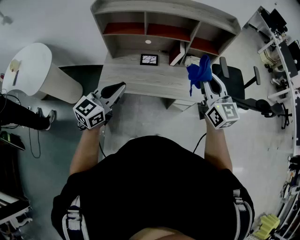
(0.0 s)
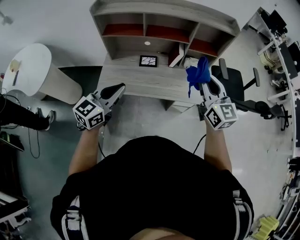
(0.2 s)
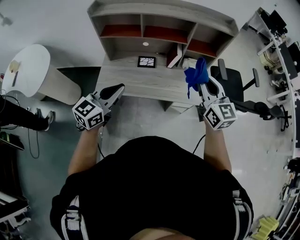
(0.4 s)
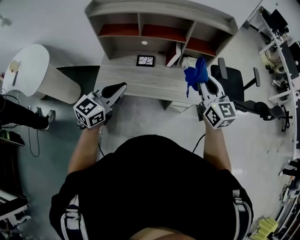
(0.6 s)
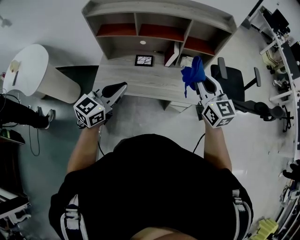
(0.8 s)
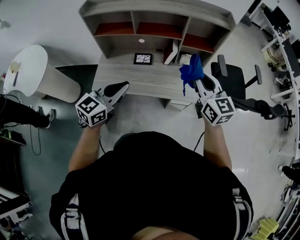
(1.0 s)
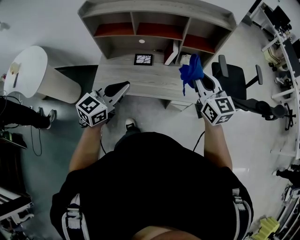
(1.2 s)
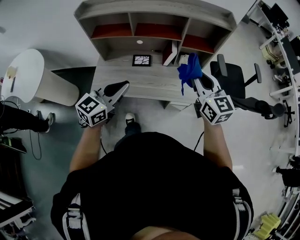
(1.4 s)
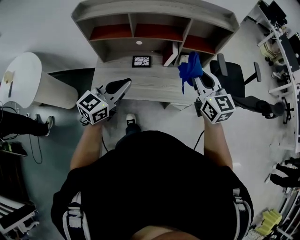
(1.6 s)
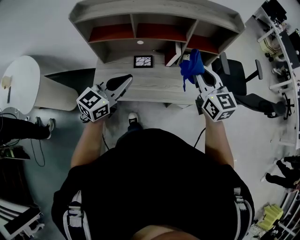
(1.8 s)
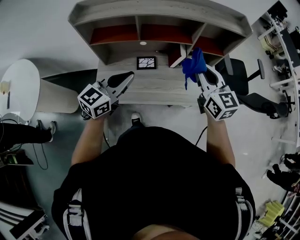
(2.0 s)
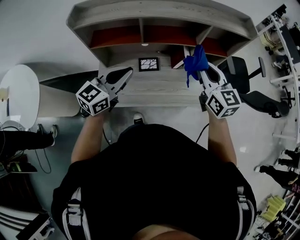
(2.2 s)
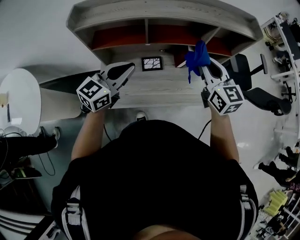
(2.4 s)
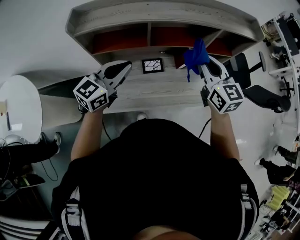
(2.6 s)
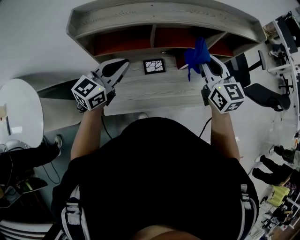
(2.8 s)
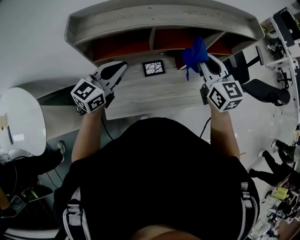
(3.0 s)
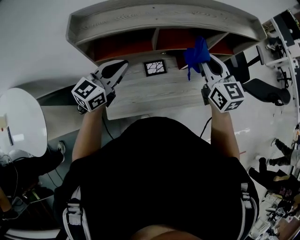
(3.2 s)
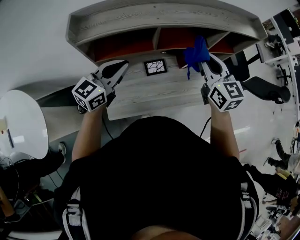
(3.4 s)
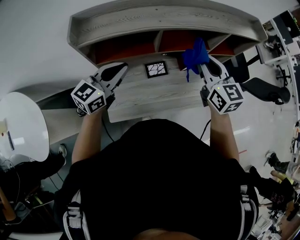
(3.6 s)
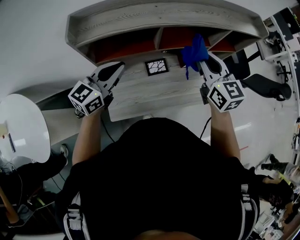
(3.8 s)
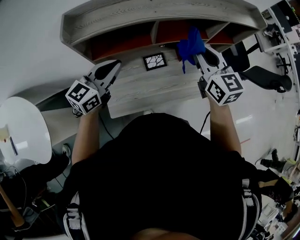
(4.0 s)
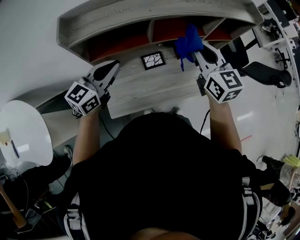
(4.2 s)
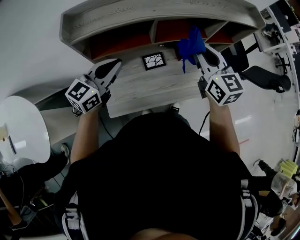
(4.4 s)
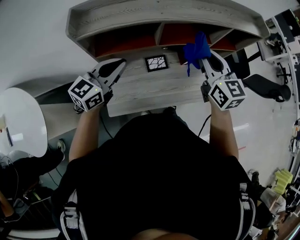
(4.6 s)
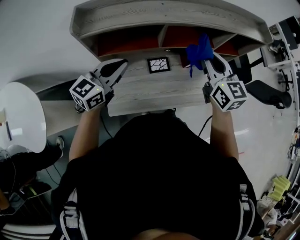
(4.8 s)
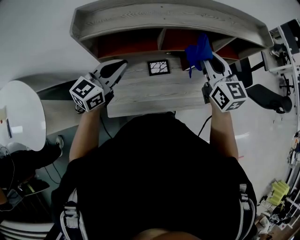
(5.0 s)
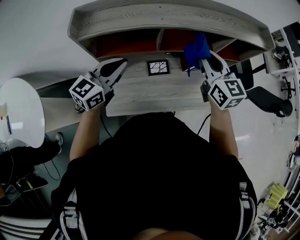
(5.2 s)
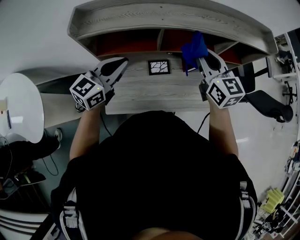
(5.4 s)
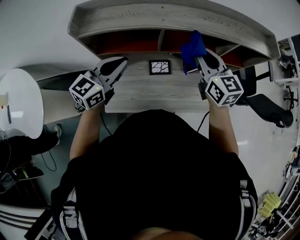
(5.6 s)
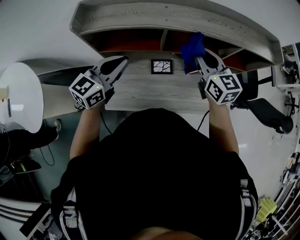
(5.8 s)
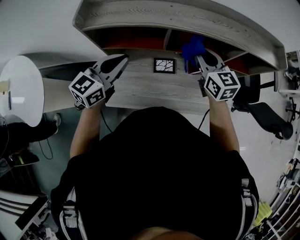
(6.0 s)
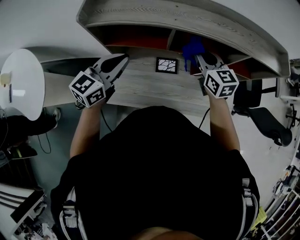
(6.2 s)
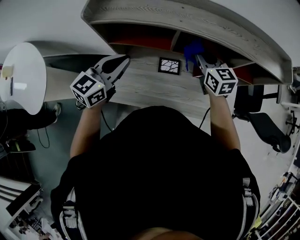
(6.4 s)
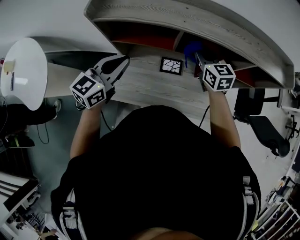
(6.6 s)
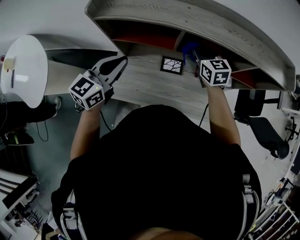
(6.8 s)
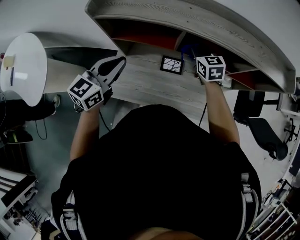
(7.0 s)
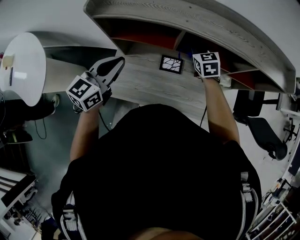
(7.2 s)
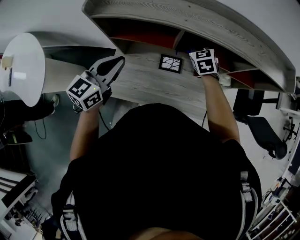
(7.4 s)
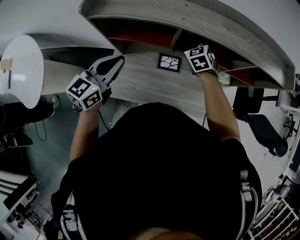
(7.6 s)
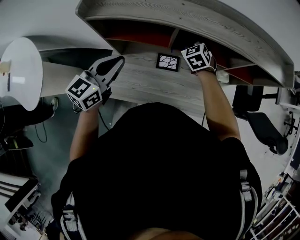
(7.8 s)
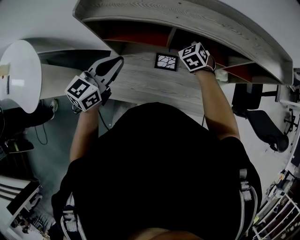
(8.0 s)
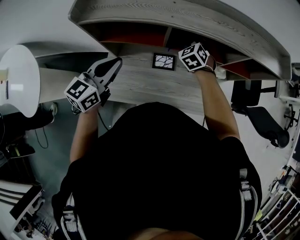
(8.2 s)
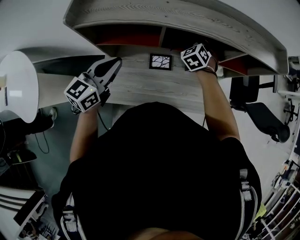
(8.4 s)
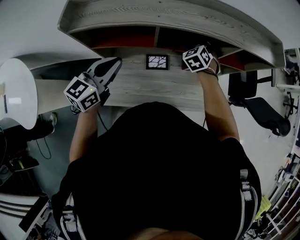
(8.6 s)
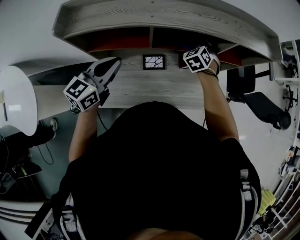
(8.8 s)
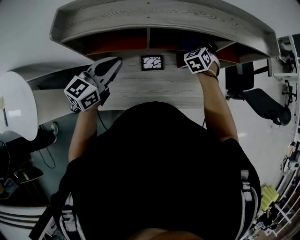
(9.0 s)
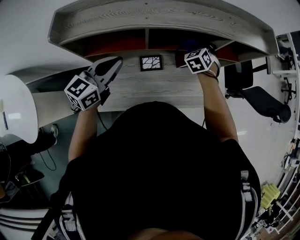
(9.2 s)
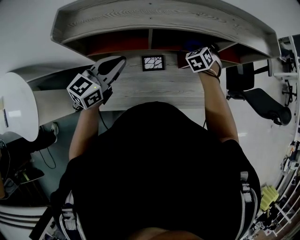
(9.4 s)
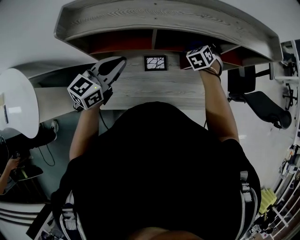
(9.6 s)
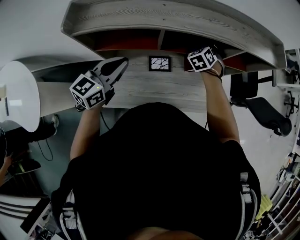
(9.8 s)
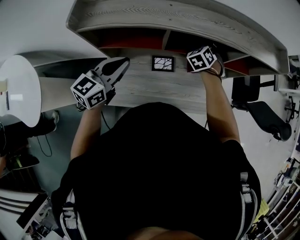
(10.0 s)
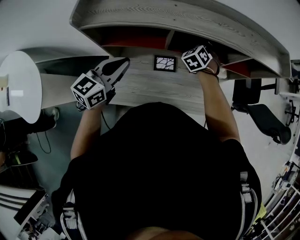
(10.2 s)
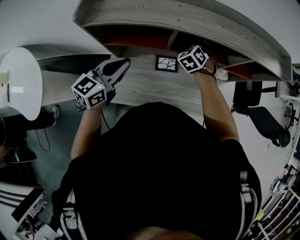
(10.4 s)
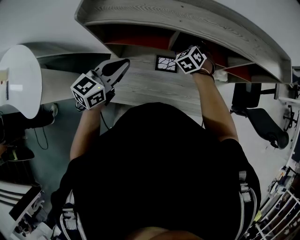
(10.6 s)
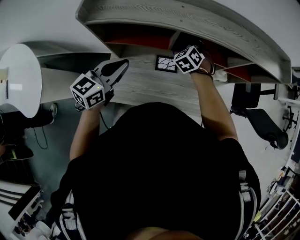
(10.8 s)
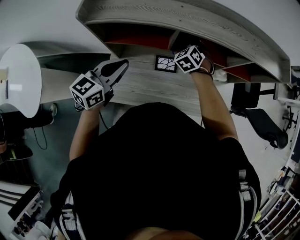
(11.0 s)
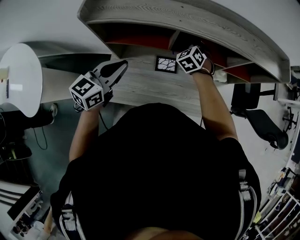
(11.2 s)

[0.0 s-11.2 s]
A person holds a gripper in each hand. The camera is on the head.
0.0 to 1.6 s: The right gripper shifts roughly 10 cm forward, while the left gripper is displaced forward and to the right by some 10 cm.
1.6 to 3.2 s: Both grippers move to the left and forward, some 30 cm.
3.2 to 4.8 s: The grippers stay close to where they were, moving slightly.
4.8 to 6.4 s: The right gripper travels forward and downward by roughly 15 cm, and rotates roughly 20 degrees.
6.4 to 8.0 s: The right gripper goes approximately 10 cm downward and forward, and changes its angle by some 40 degrees.
8.0 to 9.6 s: The left gripper goes some 5 cm forward; the right gripper goes about 15 cm to the right, and swivels roughly 30 degrees.
9.6 to 11.2 s: The left gripper is displaced backward by about 5 cm, while the right gripper goes roughly 15 cm to the left.

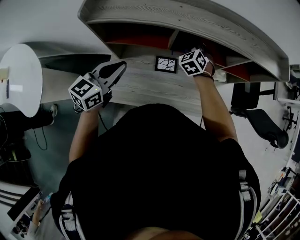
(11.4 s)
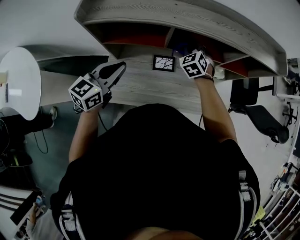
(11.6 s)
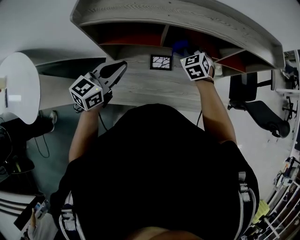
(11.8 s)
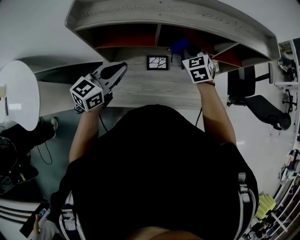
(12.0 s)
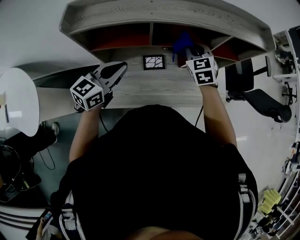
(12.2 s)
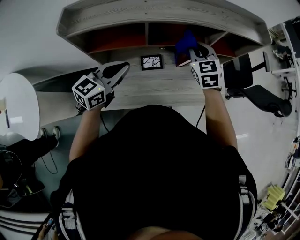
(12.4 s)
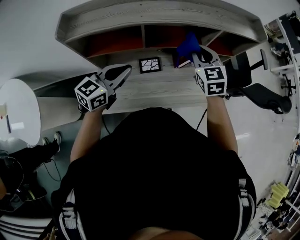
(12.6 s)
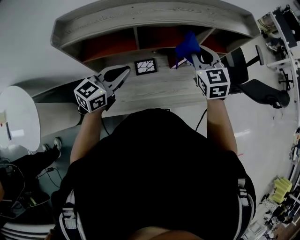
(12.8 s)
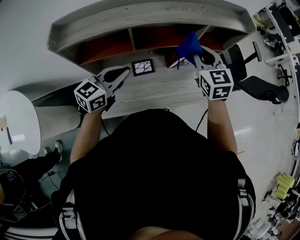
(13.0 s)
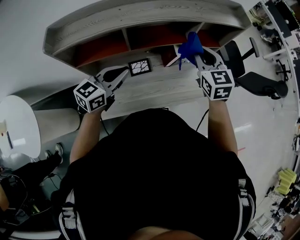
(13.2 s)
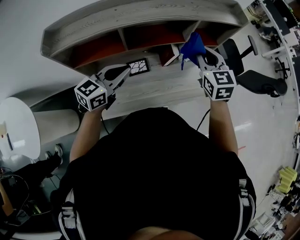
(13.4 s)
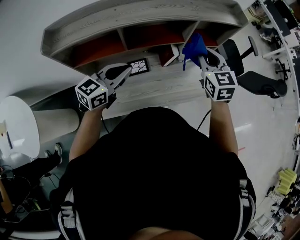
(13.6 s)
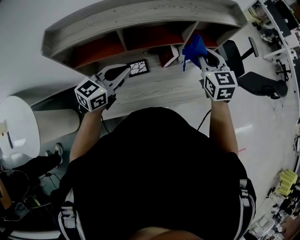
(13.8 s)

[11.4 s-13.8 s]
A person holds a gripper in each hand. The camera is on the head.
11.4 to 12.6 s: The right gripper travels upward, to the right and backward by approximately 20 cm, and rotates roughly 30 degrees. The left gripper shifts about 10 cm to the right.
12.6 to 13.8 s: The right gripper travels to the right by roughly 10 cm; the left gripper moves to the right, some 5 cm.

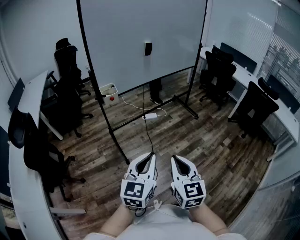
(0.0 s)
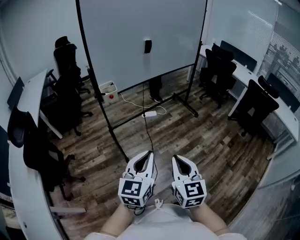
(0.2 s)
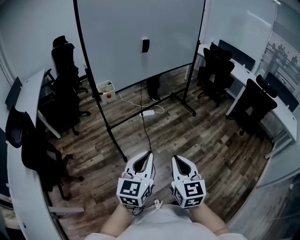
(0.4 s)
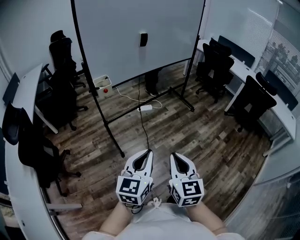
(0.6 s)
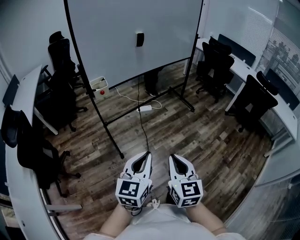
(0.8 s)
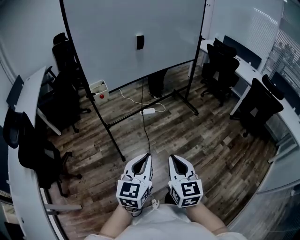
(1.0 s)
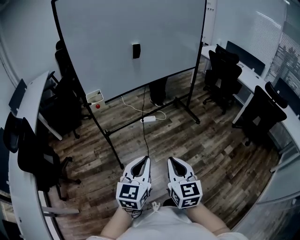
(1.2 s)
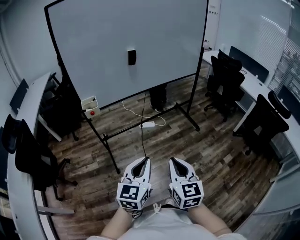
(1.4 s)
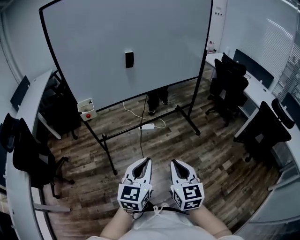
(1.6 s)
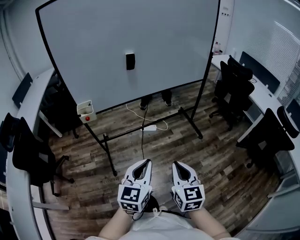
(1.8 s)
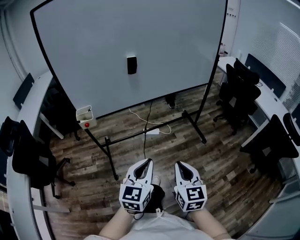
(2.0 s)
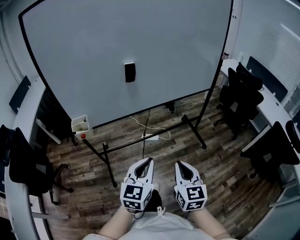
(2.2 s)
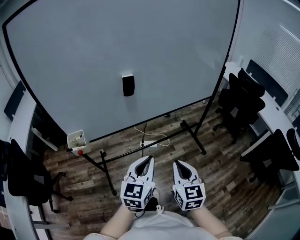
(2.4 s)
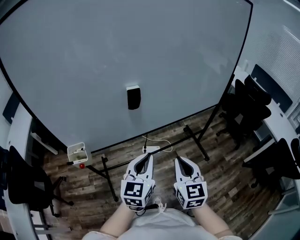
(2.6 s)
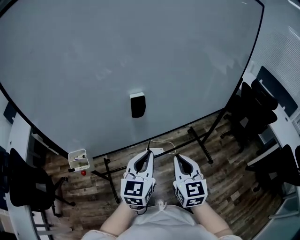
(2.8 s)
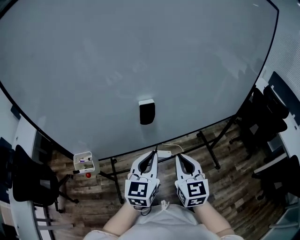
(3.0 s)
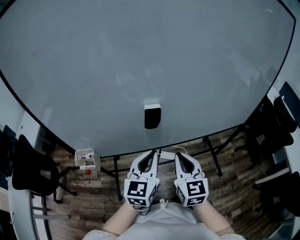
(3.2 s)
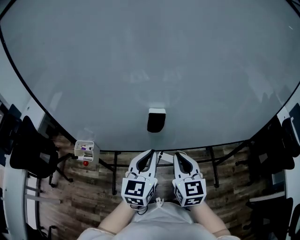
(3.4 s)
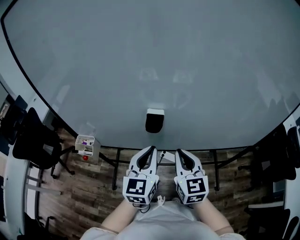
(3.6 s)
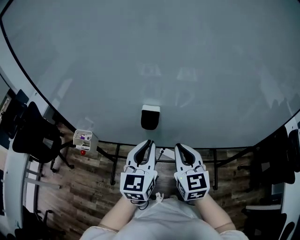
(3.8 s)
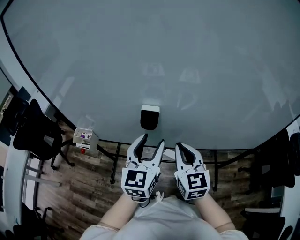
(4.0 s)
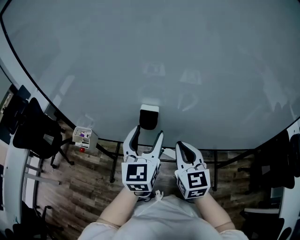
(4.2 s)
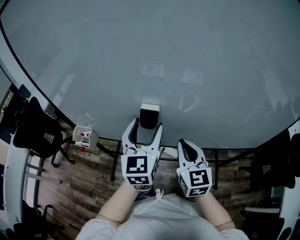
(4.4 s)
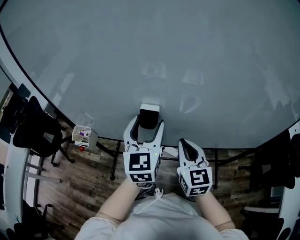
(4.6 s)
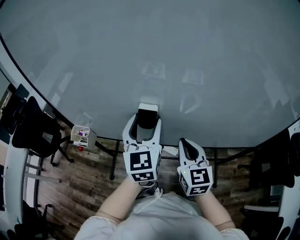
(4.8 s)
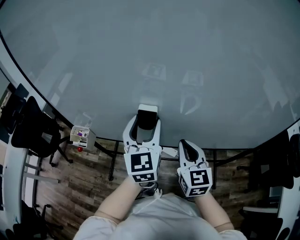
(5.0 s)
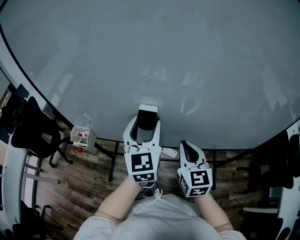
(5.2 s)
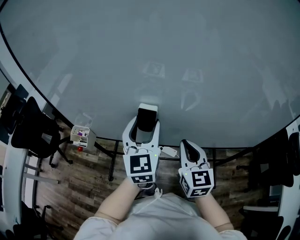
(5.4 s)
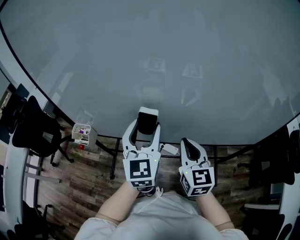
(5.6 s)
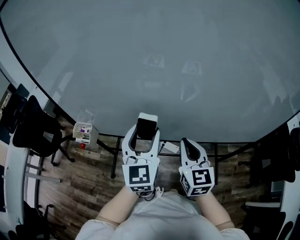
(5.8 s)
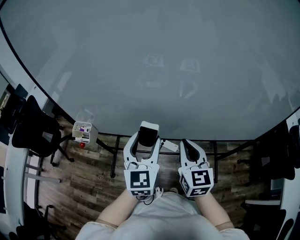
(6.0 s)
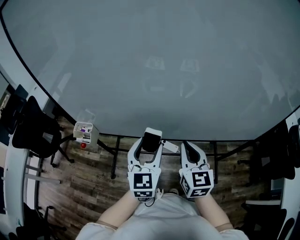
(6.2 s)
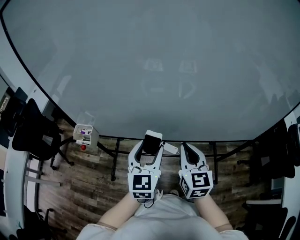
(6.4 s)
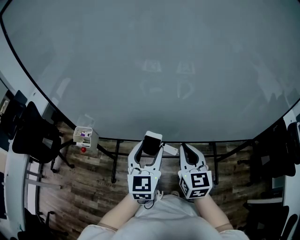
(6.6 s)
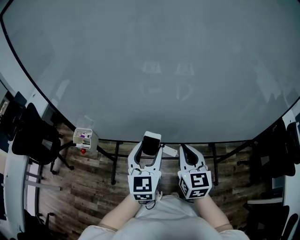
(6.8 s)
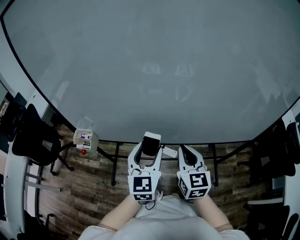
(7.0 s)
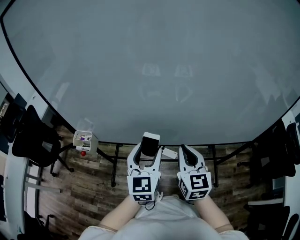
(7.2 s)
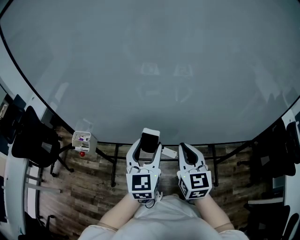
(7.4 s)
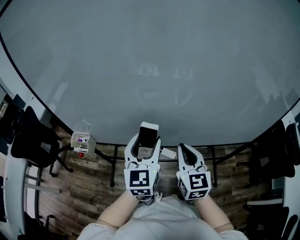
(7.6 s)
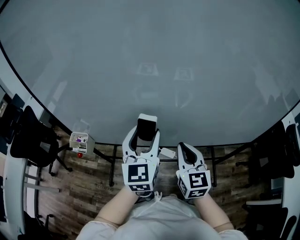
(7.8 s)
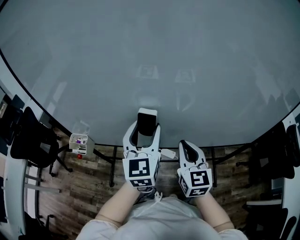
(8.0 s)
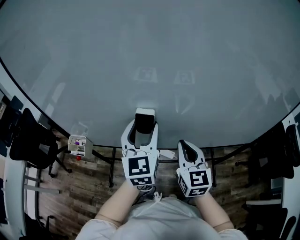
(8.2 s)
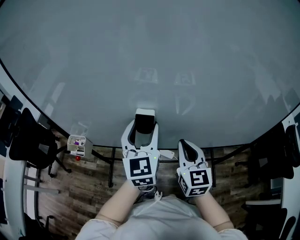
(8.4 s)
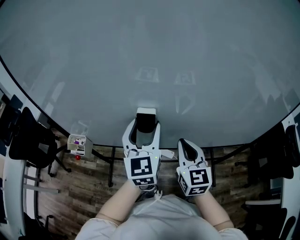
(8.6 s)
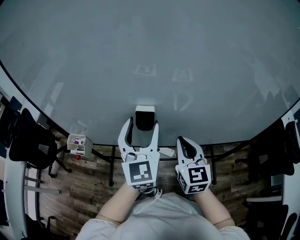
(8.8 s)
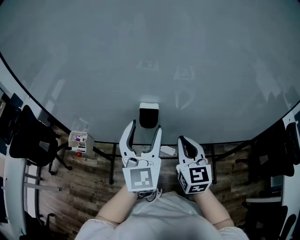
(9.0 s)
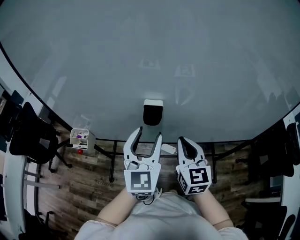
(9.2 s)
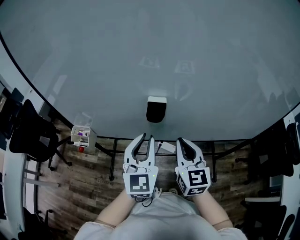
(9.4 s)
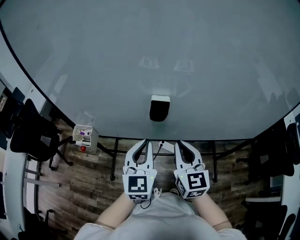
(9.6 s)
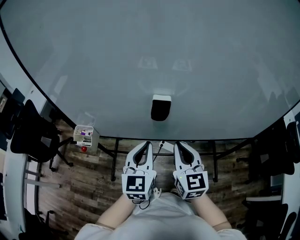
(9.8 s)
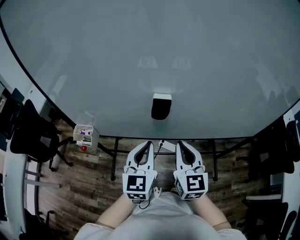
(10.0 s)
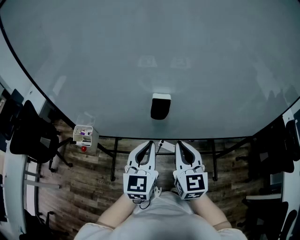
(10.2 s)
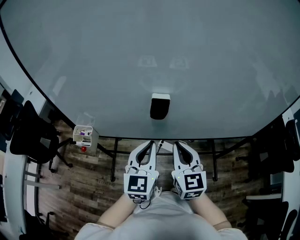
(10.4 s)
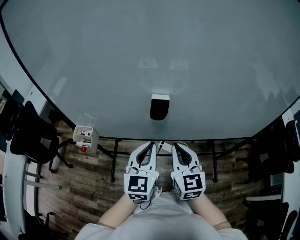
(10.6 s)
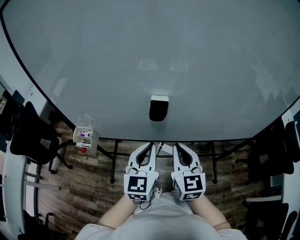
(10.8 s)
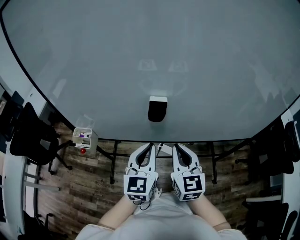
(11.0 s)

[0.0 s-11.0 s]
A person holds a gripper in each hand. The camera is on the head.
0.0 to 1.6 s: Both grippers move forward and to the right, roughly 30 cm.
1.6 to 3.2 s: Both grippers are carried forward, about 50 cm.
3.2 to 4.8 s: The right gripper is displaced forward and to the right by about 10 cm. The left gripper goes approximately 15 cm forward and upward, swivels some 30 degrees, and opens.
4.8 to 6.2 s: The left gripper shifts roughly 10 cm backward and downward.
6.2 to 7.8 s: The left gripper moves upward and forward, about 10 cm.
7.8 to 9.4 s: The left gripper moves some 5 cm, and closes up.
9.4 to 11.0 s: The grippers move only a little.
